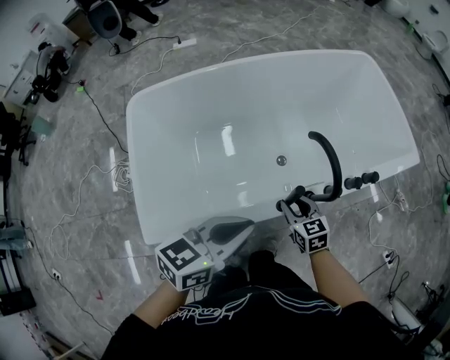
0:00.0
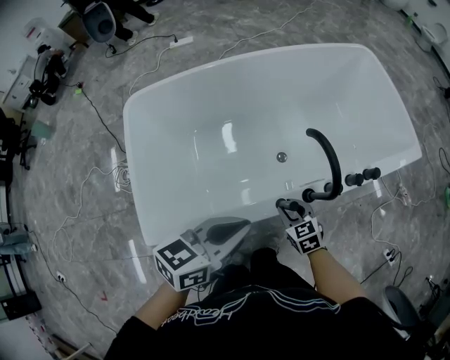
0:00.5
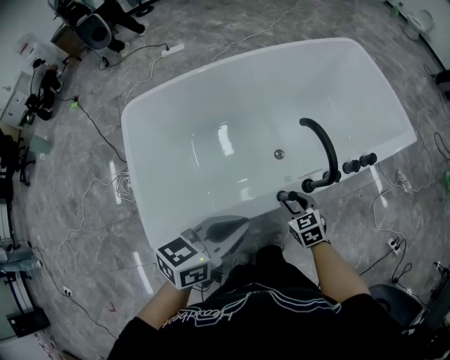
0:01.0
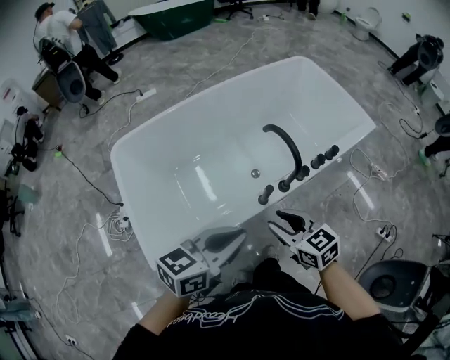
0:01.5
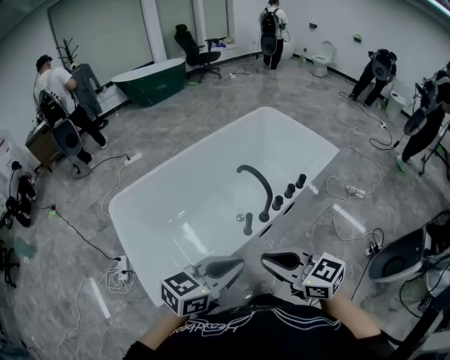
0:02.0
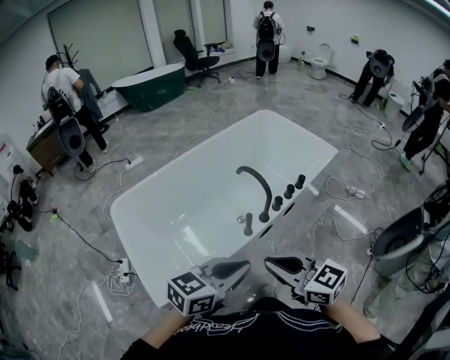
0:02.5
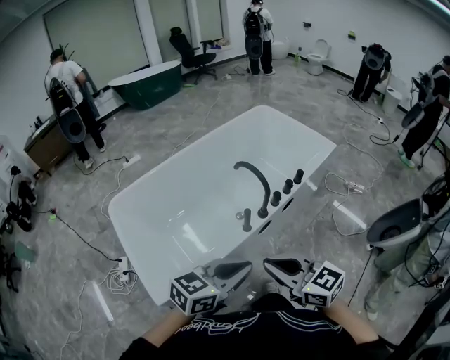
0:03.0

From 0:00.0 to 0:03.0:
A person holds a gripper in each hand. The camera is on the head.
From 0:00.0 to 0:01.5: The right gripper shifts approximately 20 cm upward and backward; the left gripper heads backward, covering some 5 cm.
From 0:01.5 to 0:03.0: The left gripper moves to the right, backward and upward, about 15 cm; the right gripper shifts approximately 20 cm upward and backward, and closes its fingers.

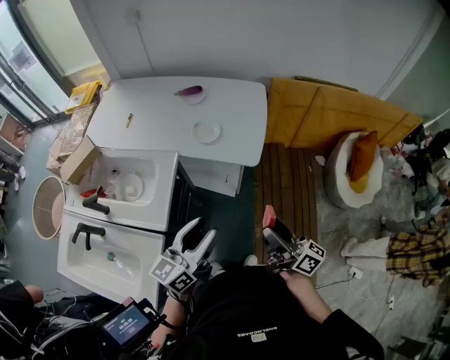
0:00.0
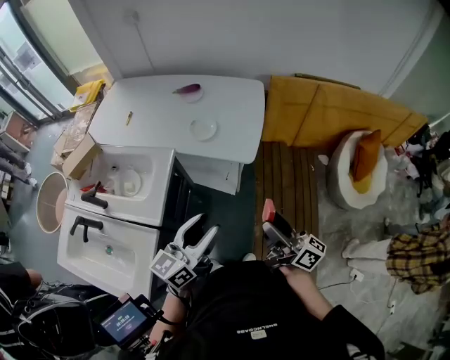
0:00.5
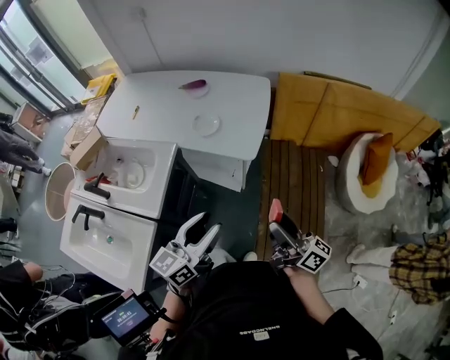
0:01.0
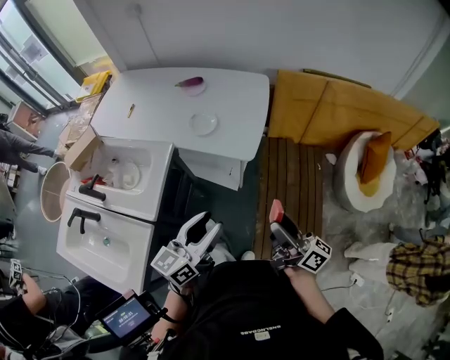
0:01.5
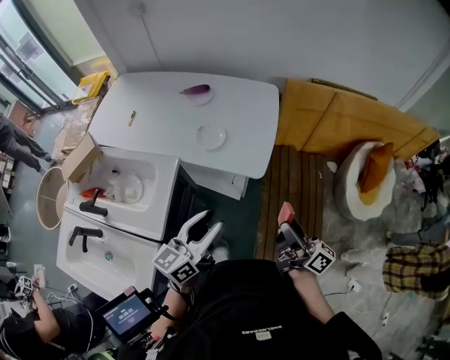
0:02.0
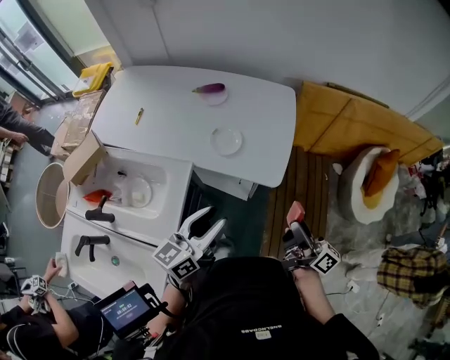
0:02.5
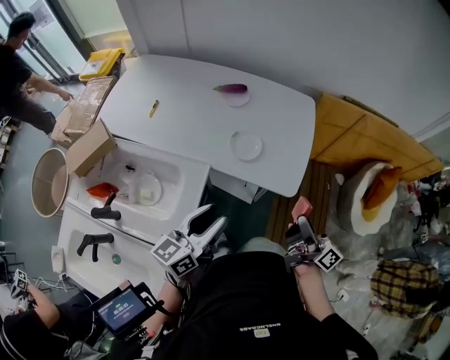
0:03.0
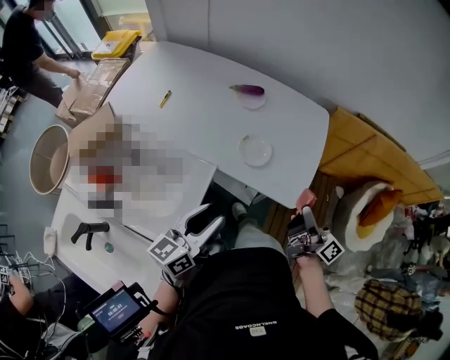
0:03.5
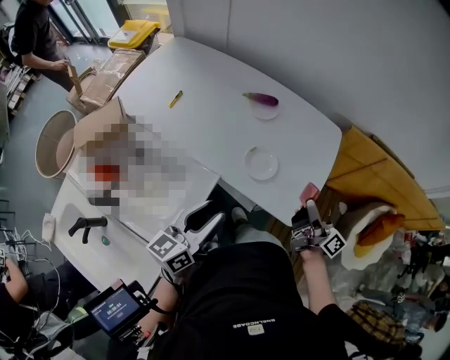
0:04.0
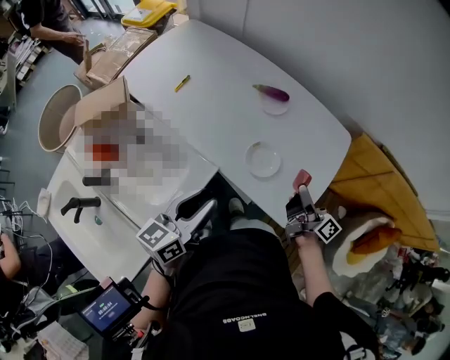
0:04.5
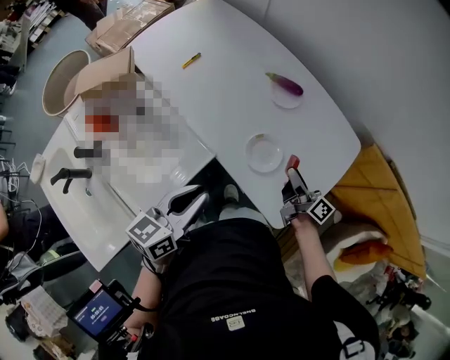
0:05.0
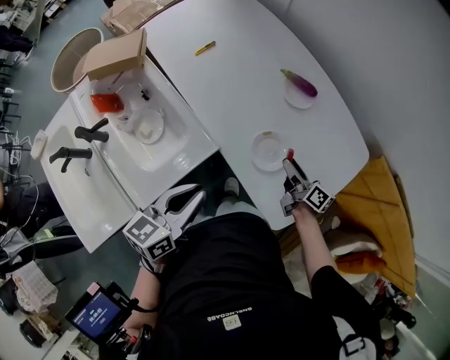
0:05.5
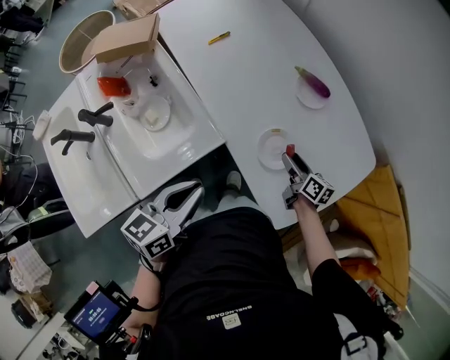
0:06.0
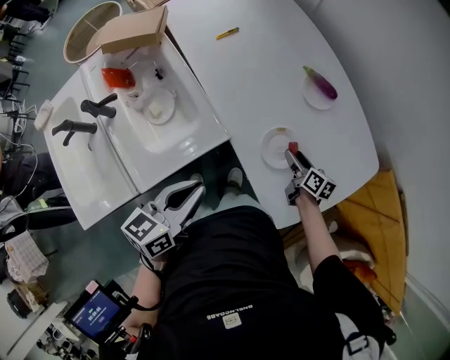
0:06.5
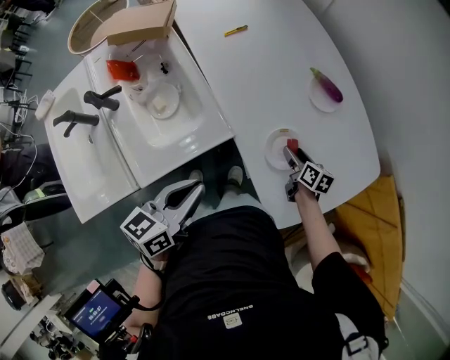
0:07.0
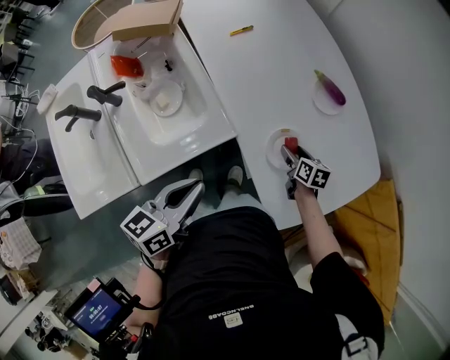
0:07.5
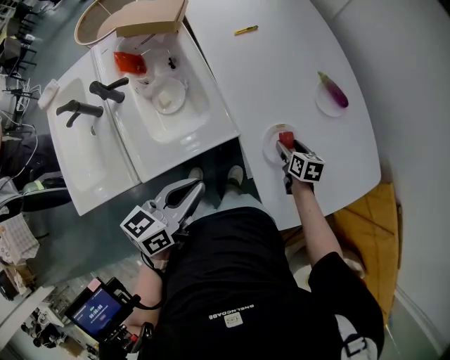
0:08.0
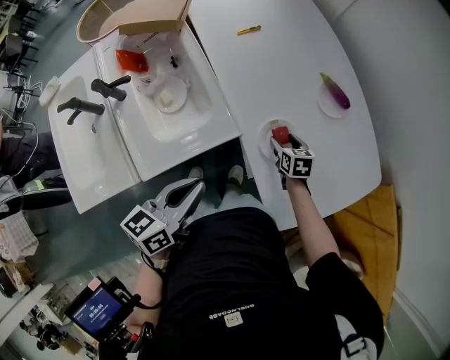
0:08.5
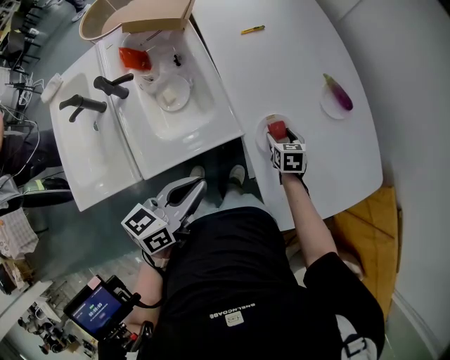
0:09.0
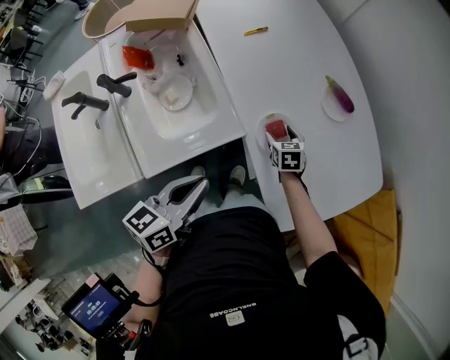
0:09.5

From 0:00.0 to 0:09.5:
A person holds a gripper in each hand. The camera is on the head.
From 0:00.0 to 0:02.0: The right gripper shifts about 15 cm forward and to the right; the left gripper travels forward by about 10 cm.
From 0:02.0 to 0:04.0: The left gripper heads to the left and forward, covering some 25 cm. Meanwhile the right gripper shifts about 30 cm forward and to the left.
From 0:04.0 to 0:05.5: The left gripper changes place by approximately 5 cm, rotates roughly 20 degrees, and closes up; the right gripper heads downward and forward, covering roughly 25 cm, and rotates roughly 40 degrees.
From 0:05.5 to 0:07.5: The right gripper is displaced downward and to the left by approximately 10 cm, and tilts its fingers approximately 40 degrees downward. The left gripper shifts roughly 5 cm to the left.
From 0:07.5 to 0:09.5: The right gripper is displaced to the left by about 10 cm, and turns by some 30 degrees.

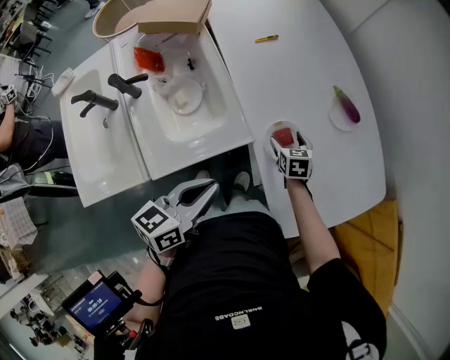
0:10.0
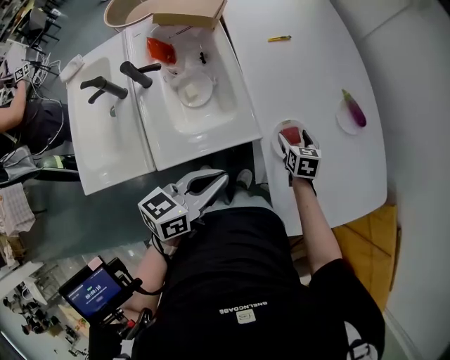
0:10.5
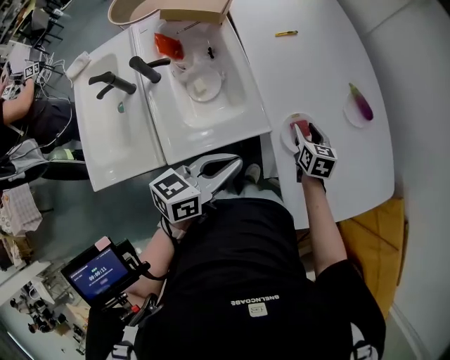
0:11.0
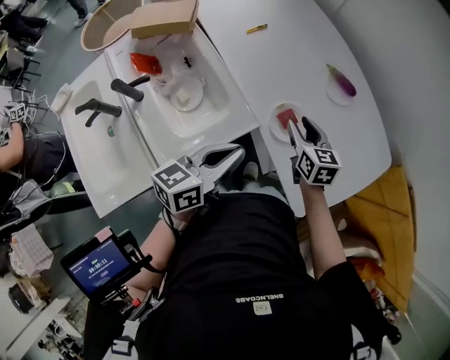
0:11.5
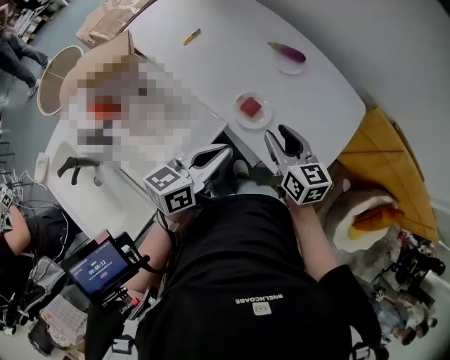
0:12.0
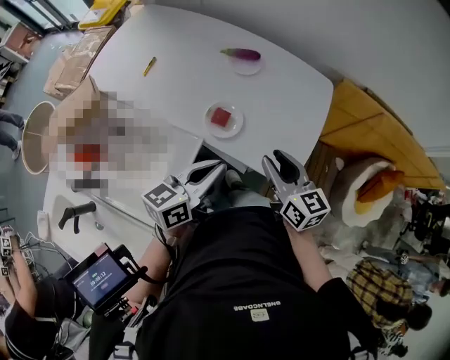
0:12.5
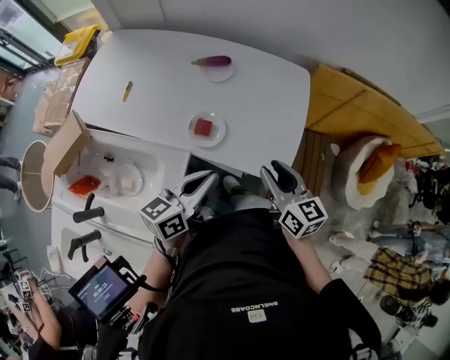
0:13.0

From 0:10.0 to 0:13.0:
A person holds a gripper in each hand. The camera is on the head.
From 0:10.0 to 0:11.5: The left gripper moves forward, roughly 5 cm, while the right gripper moves upward, approximately 15 cm, swivels about 20 degrees, and closes its fingers.
From 0:11.5 to 0:13.0: The right gripper moves some 30 cm, and changes its angle by approximately 40 degrees. Meanwhile the left gripper changes place by some 10 cm, and rotates some 40 degrees.

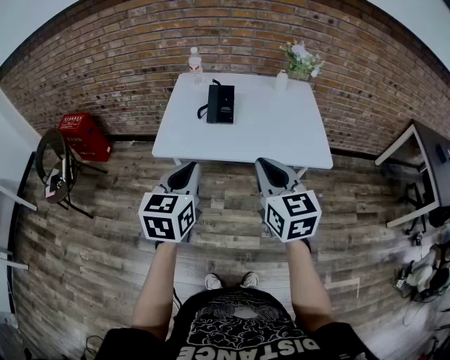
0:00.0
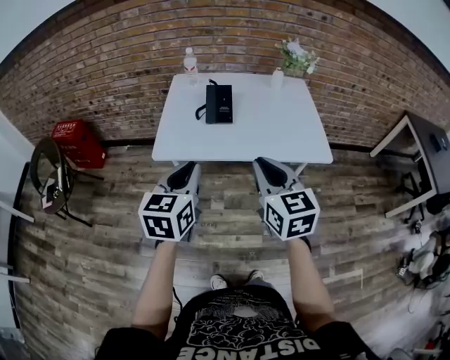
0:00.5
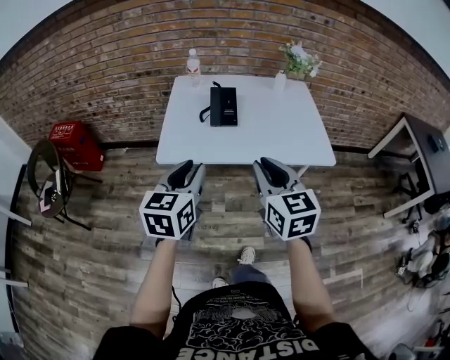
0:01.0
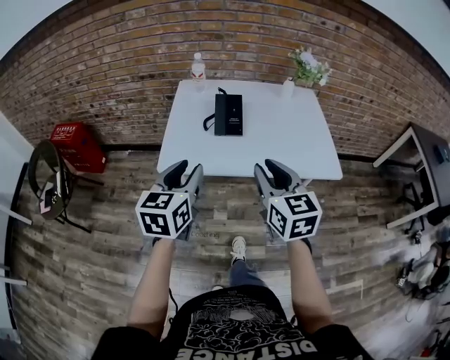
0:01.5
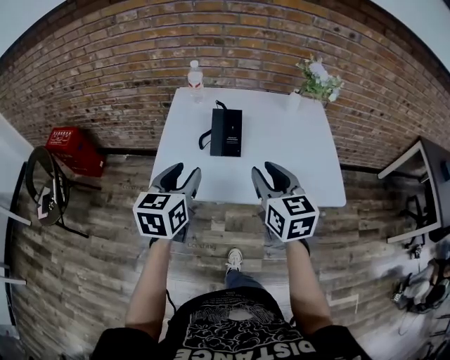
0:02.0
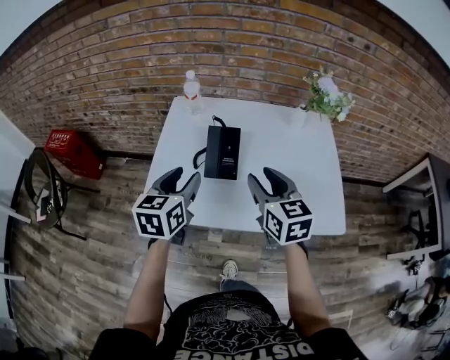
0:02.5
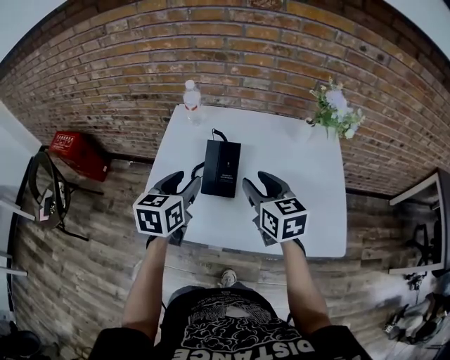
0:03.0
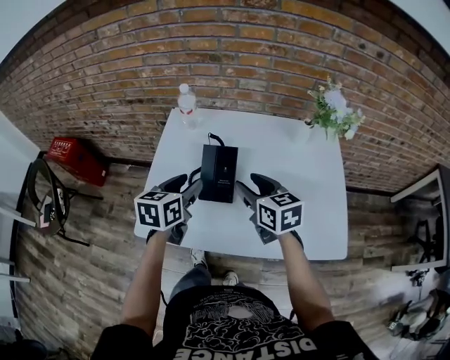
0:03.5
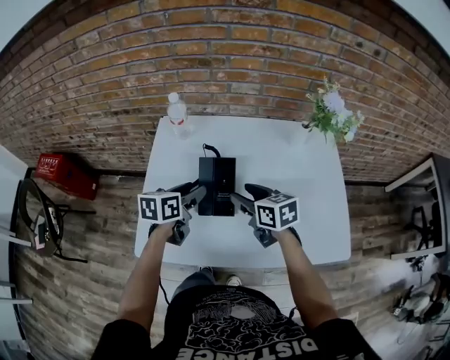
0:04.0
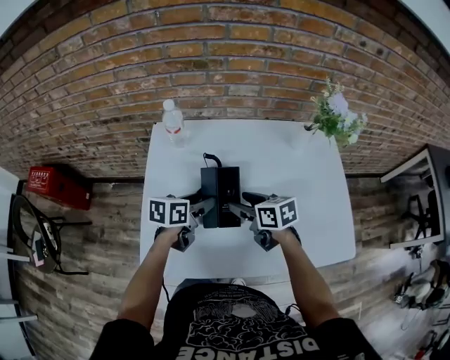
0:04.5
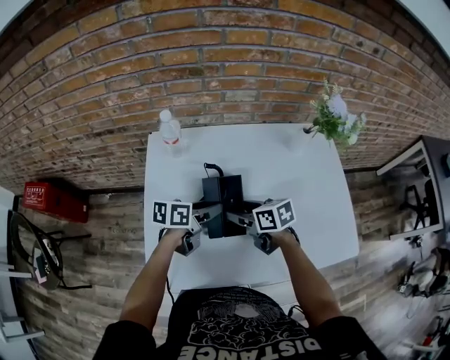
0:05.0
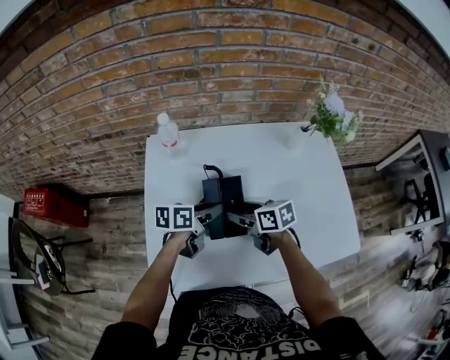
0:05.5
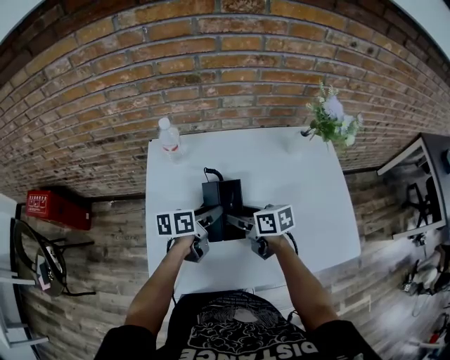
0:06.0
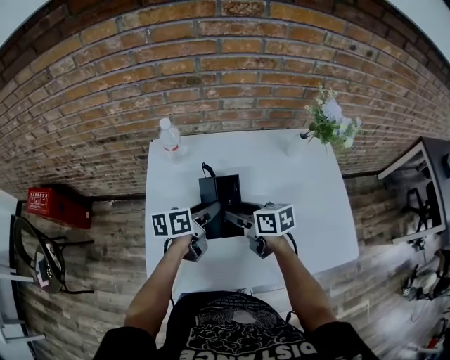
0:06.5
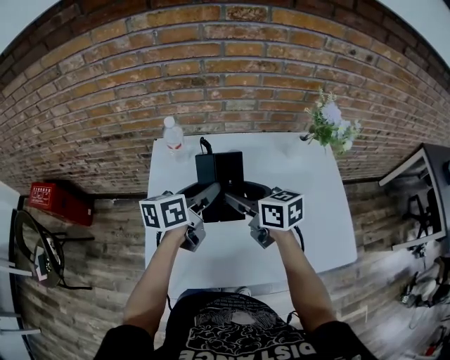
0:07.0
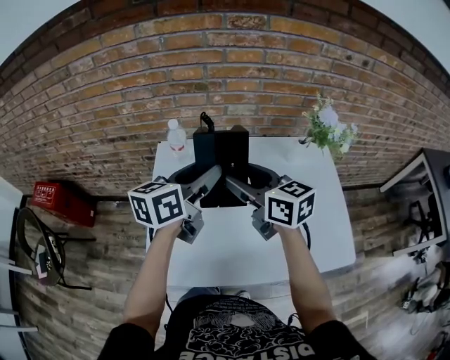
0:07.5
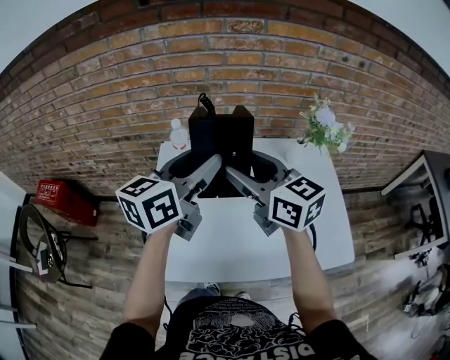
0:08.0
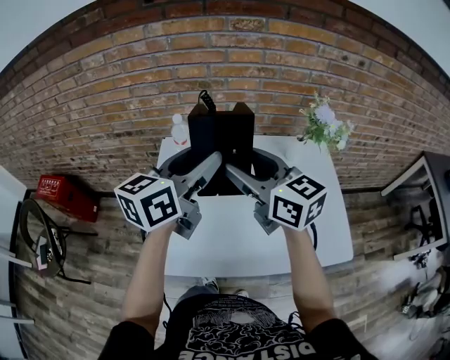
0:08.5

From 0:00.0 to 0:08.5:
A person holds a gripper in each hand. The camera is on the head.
From 0:00.0 to 0:02.0: The grippers both shift forward by approximately 20 cm. The left gripper opens its fingers, while the right gripper opens its fingers.
From 0:02.0 to 0:04.0: The two grippers go some 25 cm forward and downward. The right gripper turns by approximately 30 degrees, and opens its fingers. Meanwhile the left gripper rotates roughly 30 degrees.
From 0:04.0 to 0:06.5: The left gripper shifts by roughly 5 cm. The right gripper ends up approximately 5 cm from where it was.
From 0:06.5 to 0:08.5: Both grippers move upward, about 30 cm. The right gripper rotates roughly 40 degrees. Meanwhile the left gripper changes its angle by about 40 degrees.

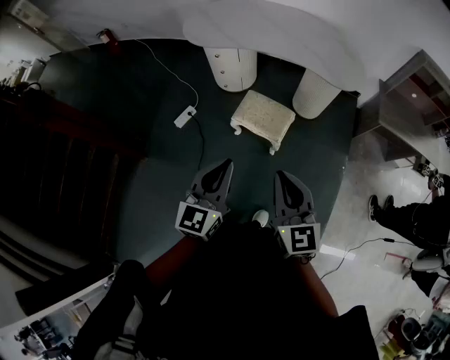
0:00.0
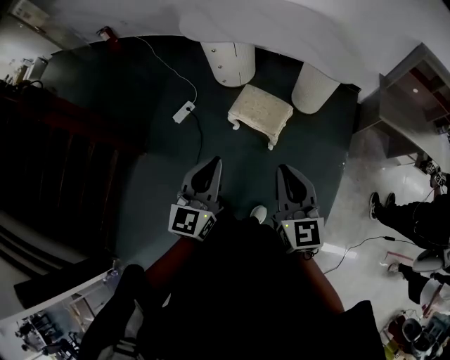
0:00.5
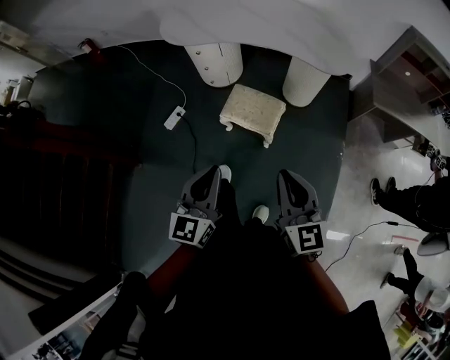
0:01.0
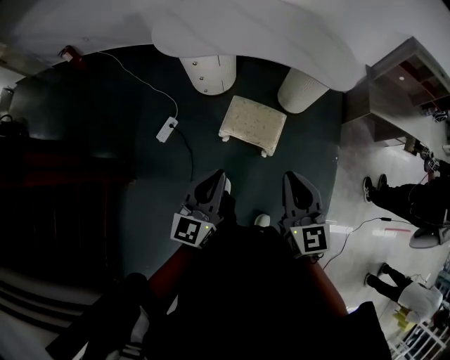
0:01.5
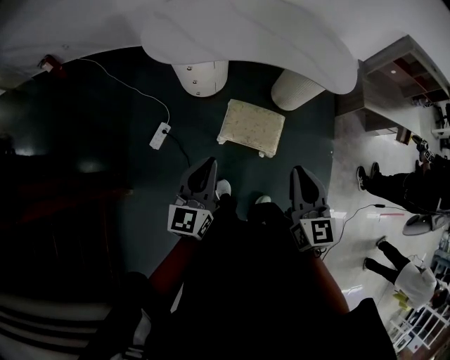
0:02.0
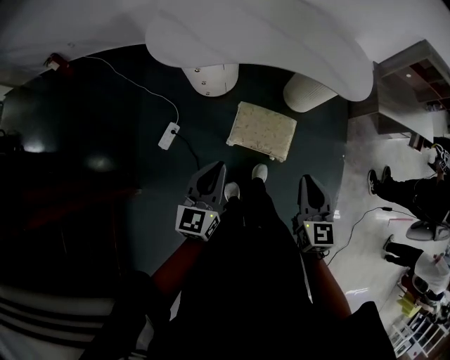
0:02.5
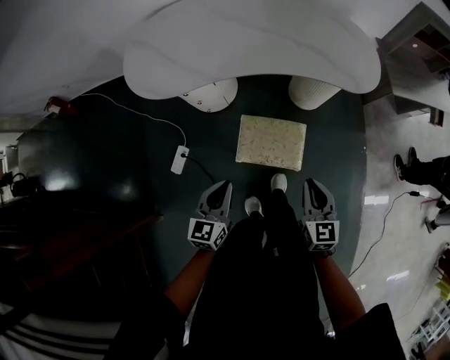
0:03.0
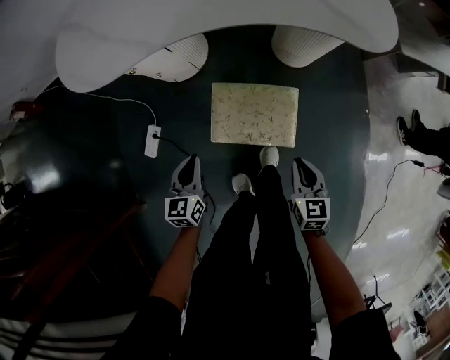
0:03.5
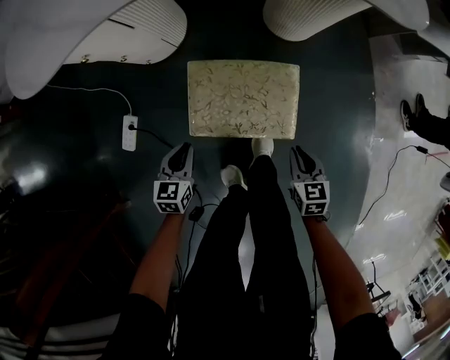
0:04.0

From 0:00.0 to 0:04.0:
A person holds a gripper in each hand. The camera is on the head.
From 0:00.0 to 0:02.0: The left gripper moves forward and to the left, about 25 cm. Meanwhile the right gripper heads forward, covering approximately 20 cm.
From 0:02.0 to 0:04.0: The two grippers go some 60 cm downward. The left gripper points its fingers about 30 degrees further downward. The right gripper points its fingers roughly 30 degrees further downward.
